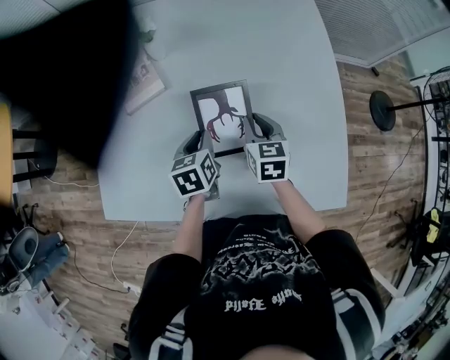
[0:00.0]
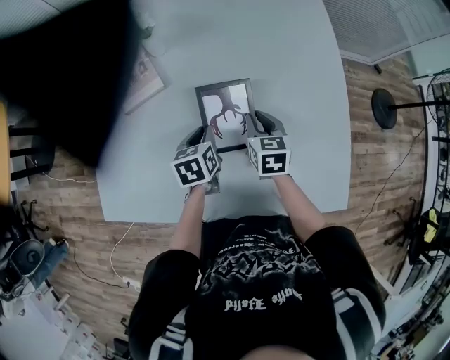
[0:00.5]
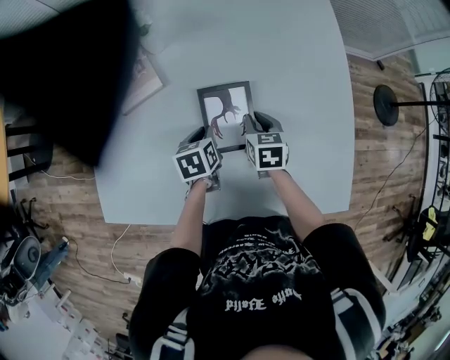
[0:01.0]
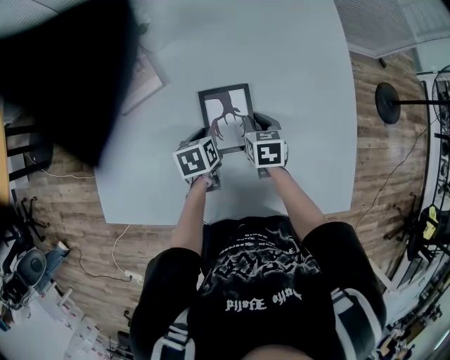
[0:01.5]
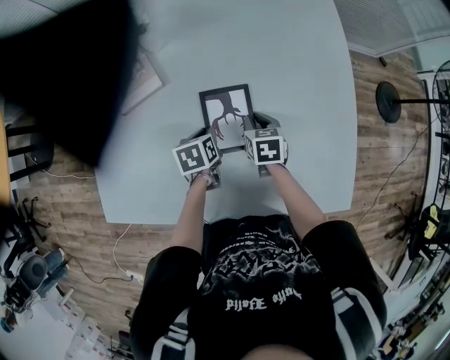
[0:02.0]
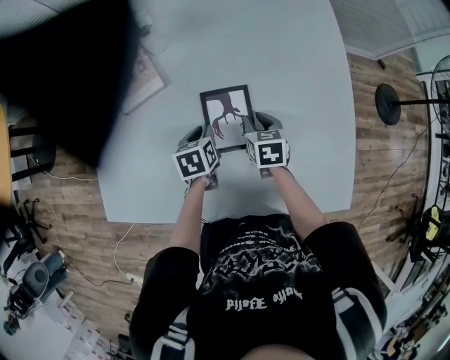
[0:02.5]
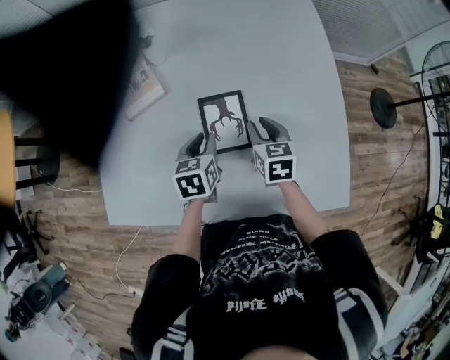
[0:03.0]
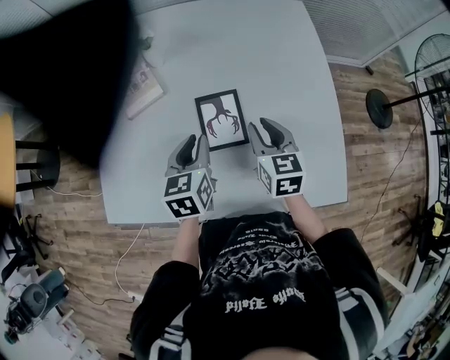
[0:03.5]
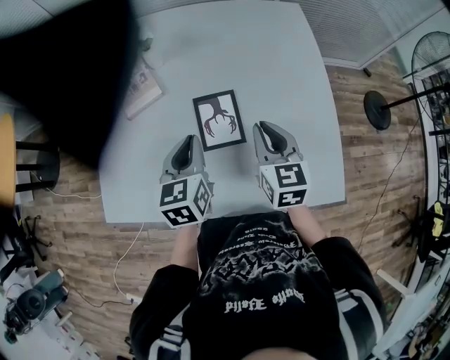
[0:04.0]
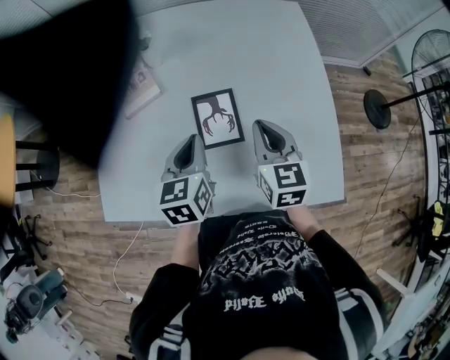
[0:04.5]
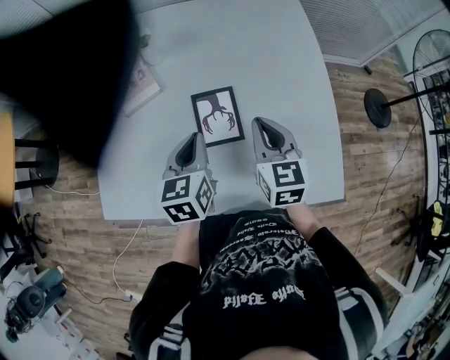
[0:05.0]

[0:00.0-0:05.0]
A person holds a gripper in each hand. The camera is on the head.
0:00.0 to 0:02.5: Both grippers move downward, roughly 10 cm.
0:02.5 to 0:05.0: The left gripper moves upward, approximately 20 cm, and rotates about 30 degrees. Meanwhile the right gripper heads upward and backward, covering some 20 cm, turns by approximately 30 degrees, and closes.

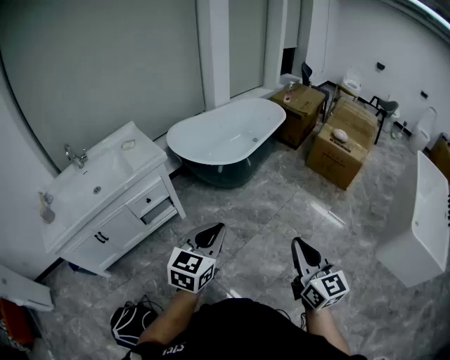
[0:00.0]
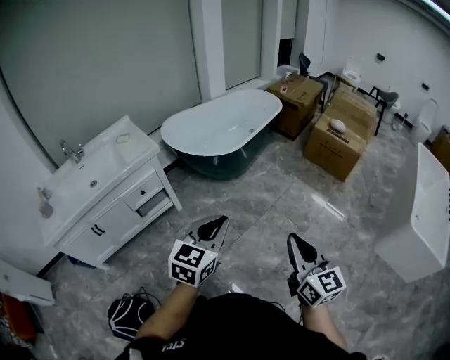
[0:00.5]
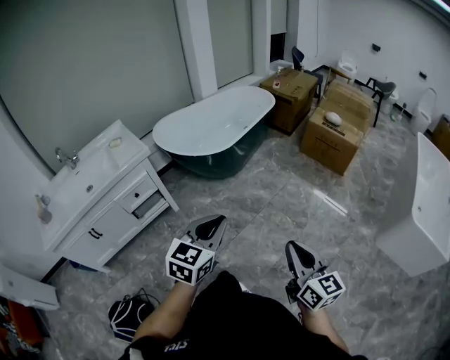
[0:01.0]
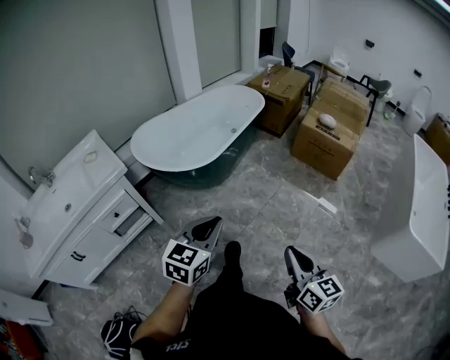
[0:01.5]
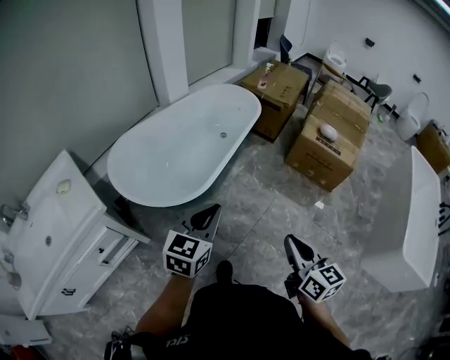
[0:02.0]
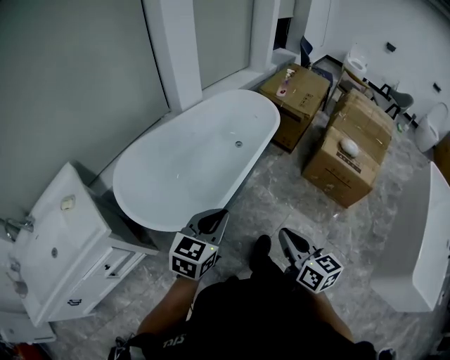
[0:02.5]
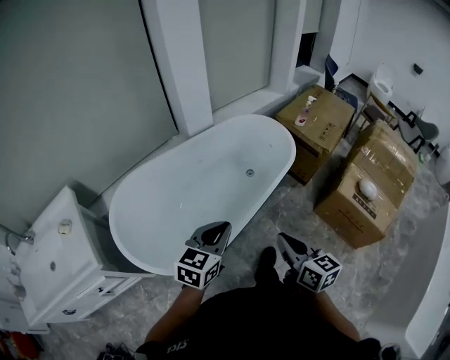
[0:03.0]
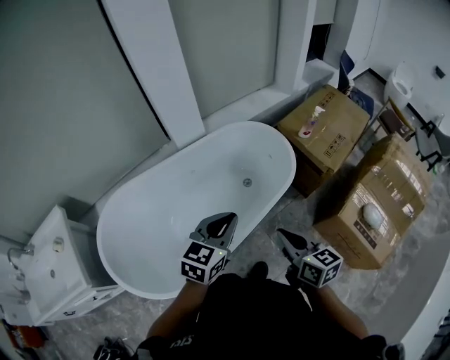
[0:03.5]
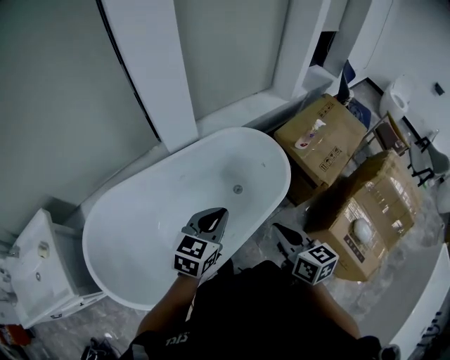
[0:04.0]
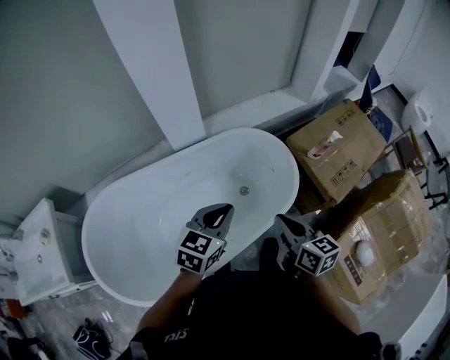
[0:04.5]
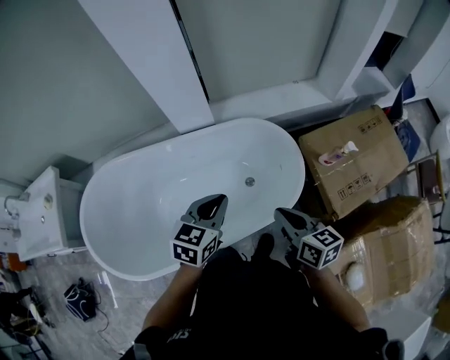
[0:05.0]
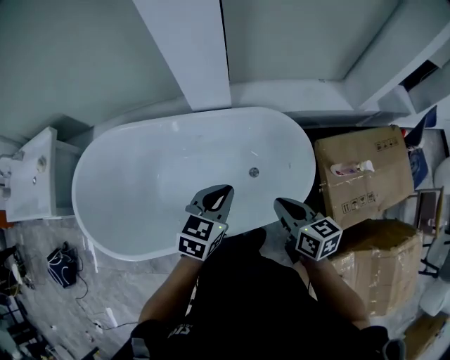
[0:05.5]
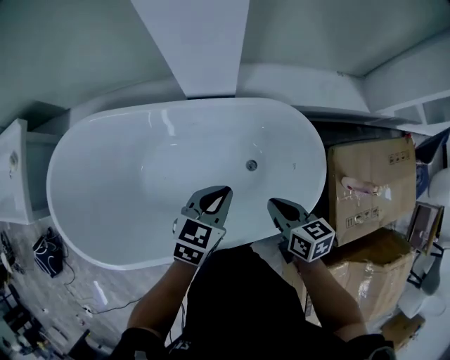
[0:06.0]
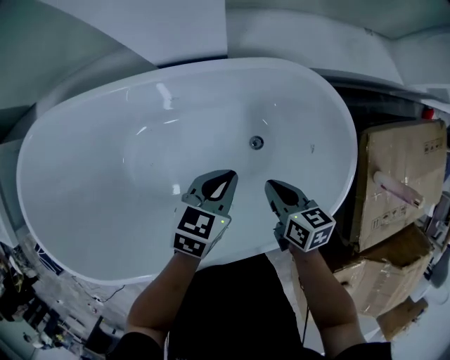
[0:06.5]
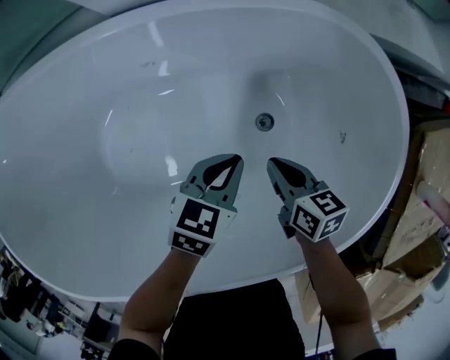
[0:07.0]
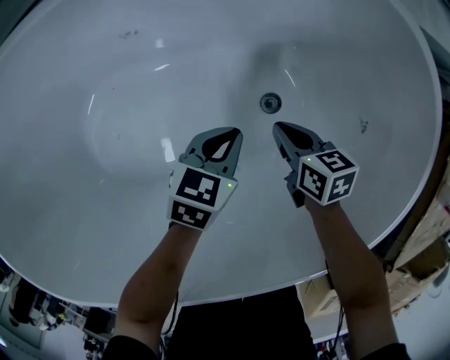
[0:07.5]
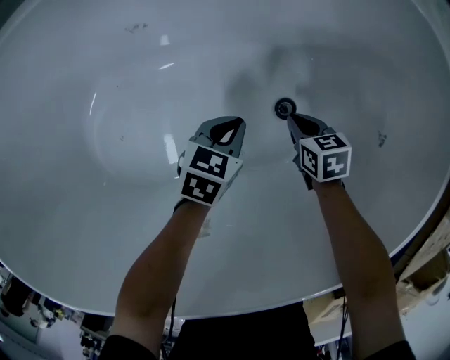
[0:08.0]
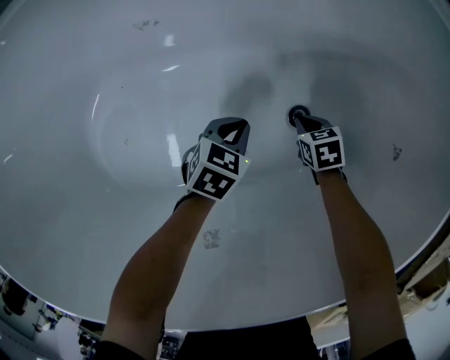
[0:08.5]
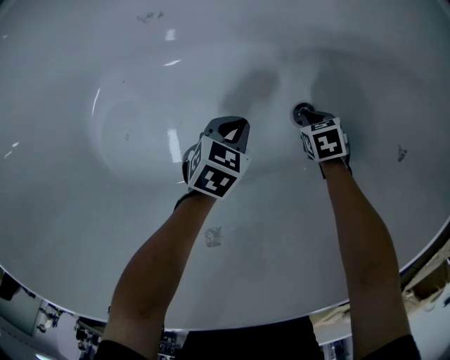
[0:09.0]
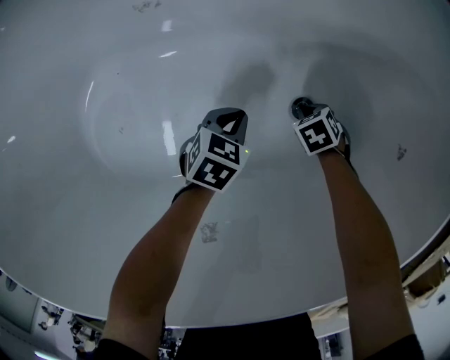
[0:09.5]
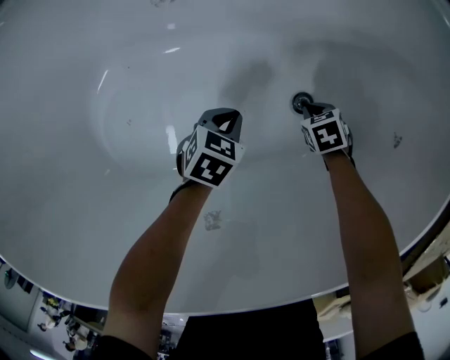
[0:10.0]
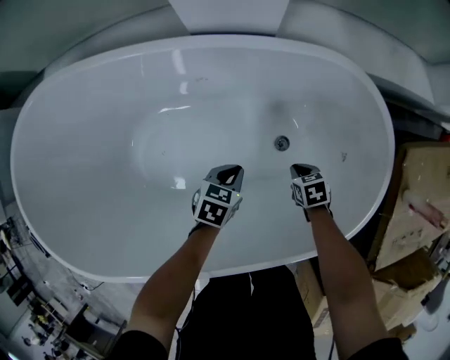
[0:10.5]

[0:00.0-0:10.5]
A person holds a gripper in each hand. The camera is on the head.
0:00.0 to 0:02.0: The two grippers travel together, forward, roughly 50 cm.
0:02.0 to 0:04.0: Both grippers are carried forward, about 70 cm. The right gripper swivels roughly 30 degrees.
0:04.0 to 0:06.5: Both grippers travel together downward, roughly 40 cm. The left gripper changes its angle by some 30 degrees. The right gripper swivels approximately 40 degrees.
0:06.5 to 0:08.5: Both grippers travel together downward, about 40 cm. The right gripper points its fingers some 30 degrees further downward.
0:08.5 to 0:10.5: The two grippers go some 25 cm upward.

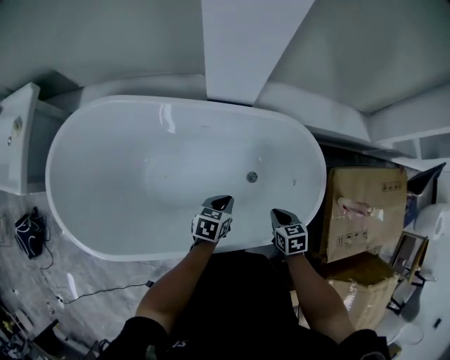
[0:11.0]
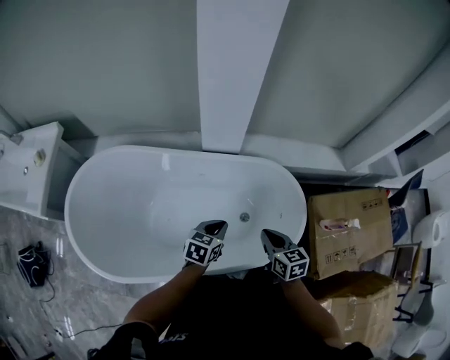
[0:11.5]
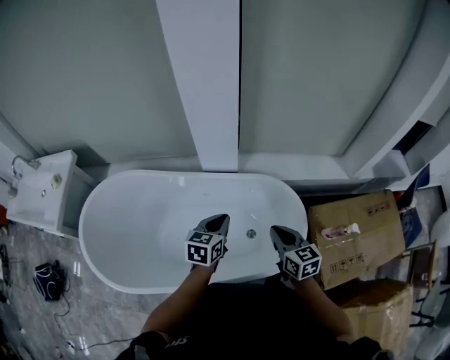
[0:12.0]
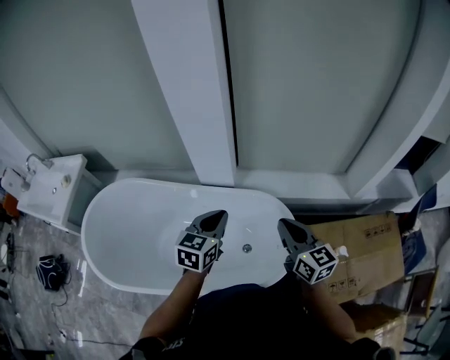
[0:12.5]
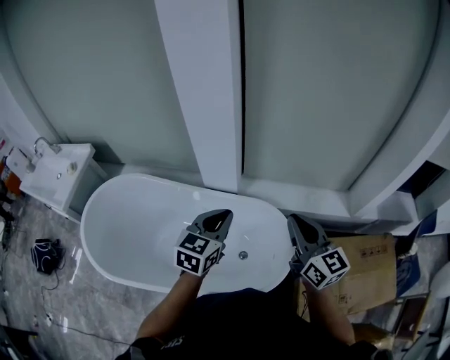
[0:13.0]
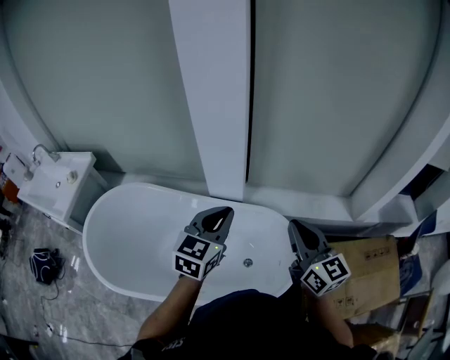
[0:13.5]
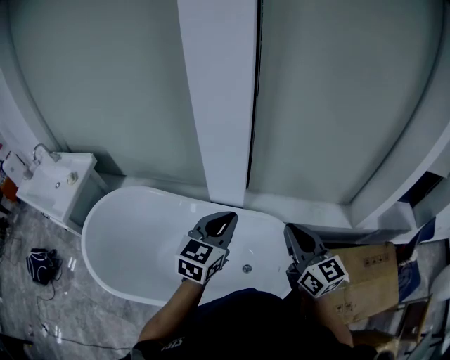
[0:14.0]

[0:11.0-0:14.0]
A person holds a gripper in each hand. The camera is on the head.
0:11.0 to 0:12.5: The grippers both shift upward by some 40 cm. The left gripper rotates roughly 30 degrees; the right gripper angles its fingers upward, by approximately 50 degrees.
0:12.5 to 0:14.0: The left gripper shifts approximately 10 cm upward; the right gripper shifts about 10 cm upward and to the left.

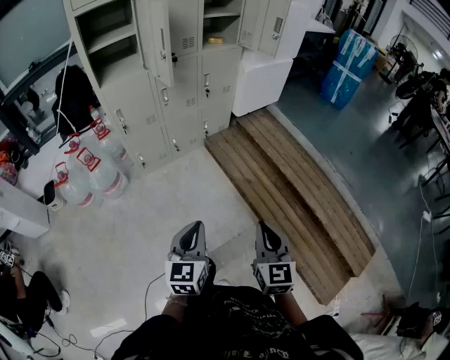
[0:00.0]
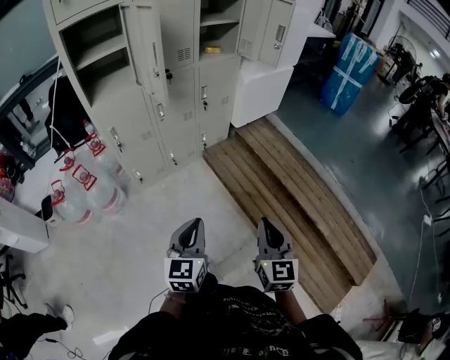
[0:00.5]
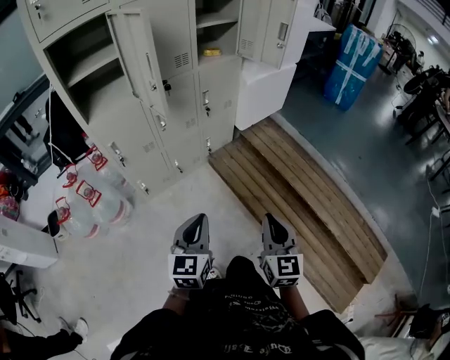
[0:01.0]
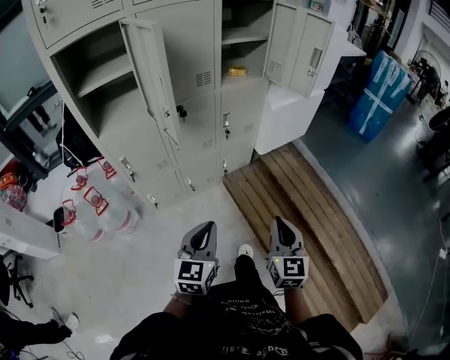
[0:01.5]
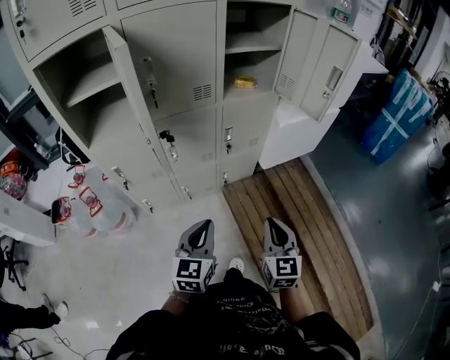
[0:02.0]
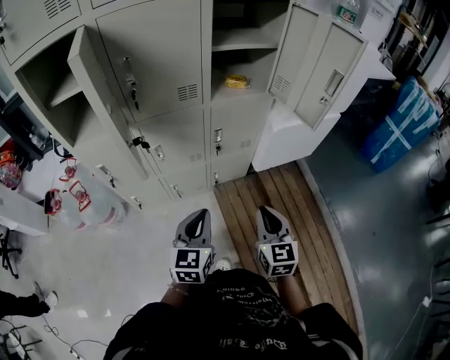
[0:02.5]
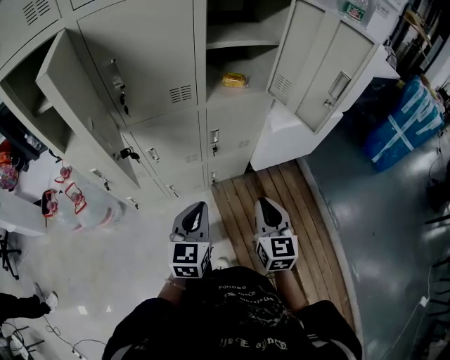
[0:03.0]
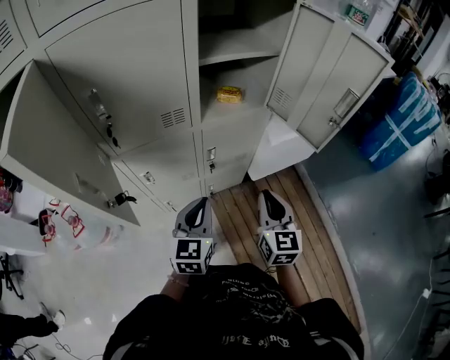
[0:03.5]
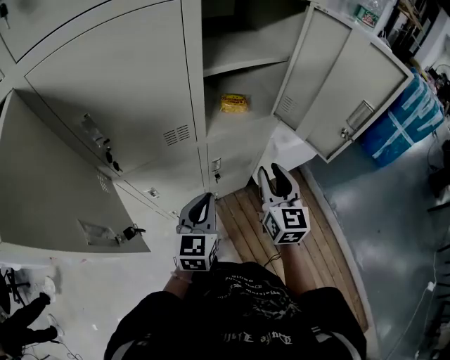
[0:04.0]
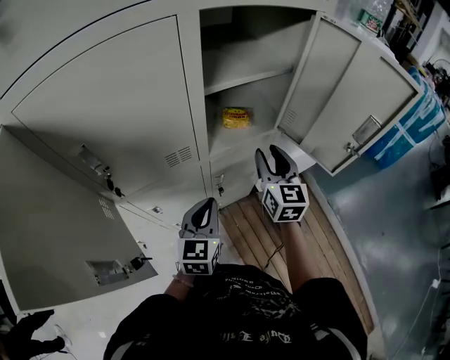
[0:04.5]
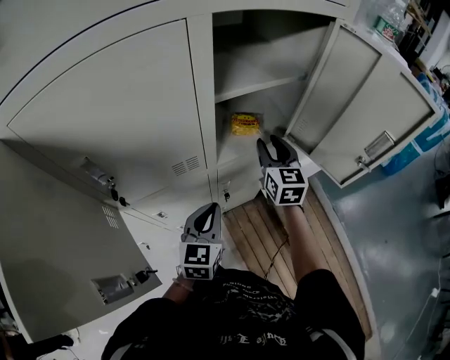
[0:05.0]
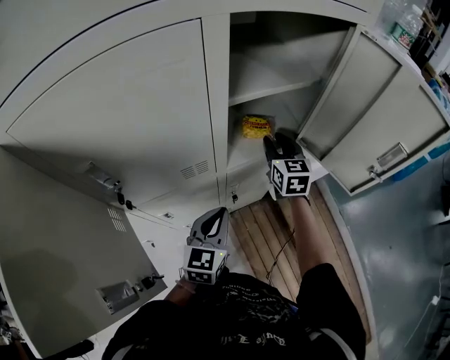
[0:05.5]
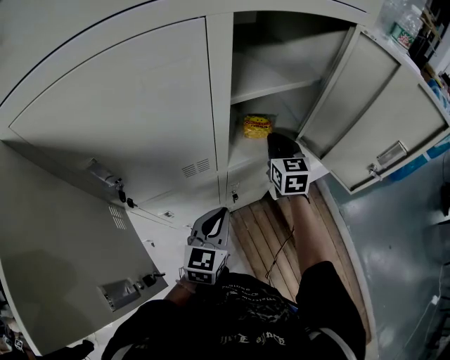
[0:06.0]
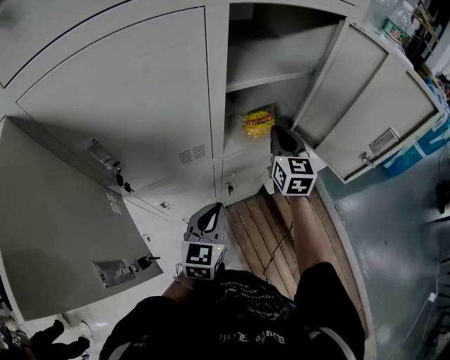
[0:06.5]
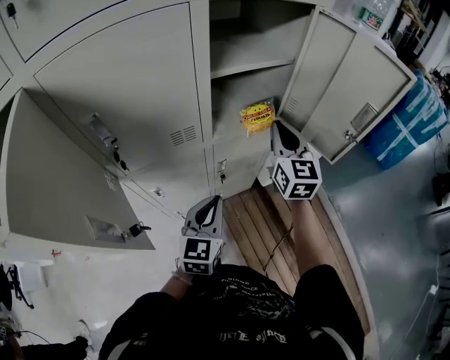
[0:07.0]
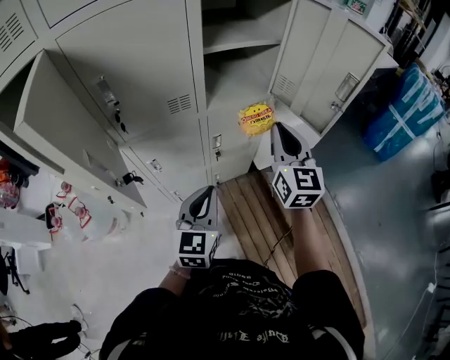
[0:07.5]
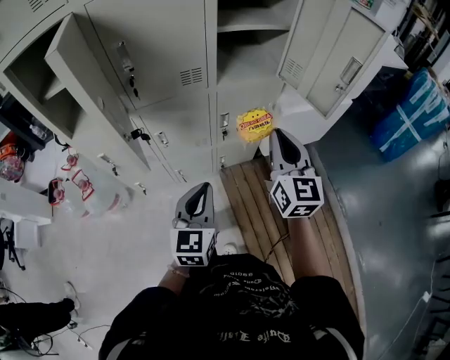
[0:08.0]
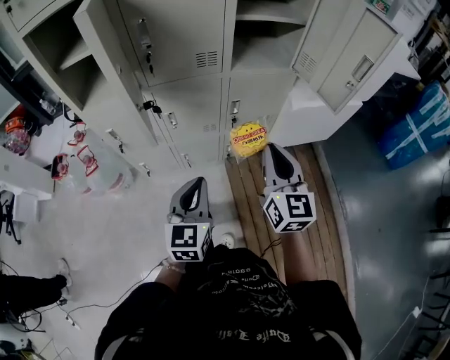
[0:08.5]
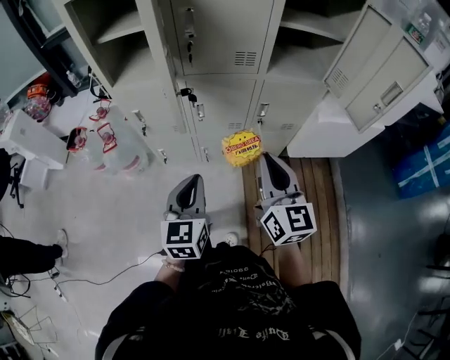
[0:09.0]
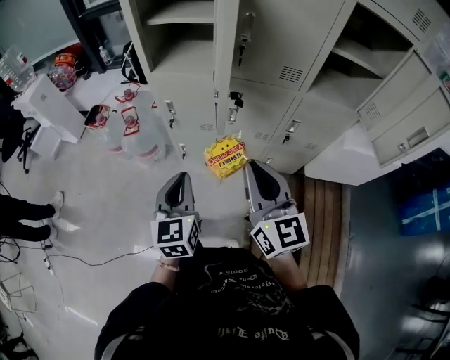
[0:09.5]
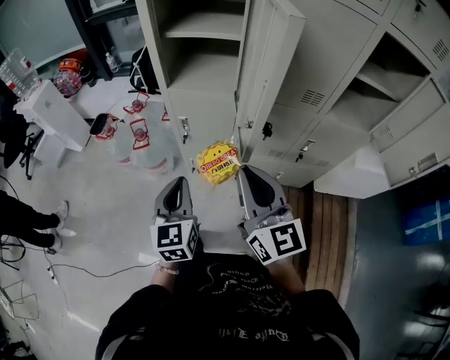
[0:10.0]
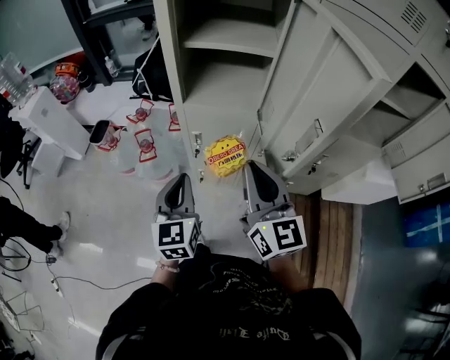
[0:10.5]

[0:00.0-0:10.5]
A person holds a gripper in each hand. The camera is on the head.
0:00.0 to 0:02.0: Both grippers are carried forward, about 40 cm.
0:02.0 to 0:04.0: Both grippers move forward, about 30 cm. The right gripper opens its fingers.
0:04.0 to 0:06.5: The right gripper shifts roughly 20 cm forward, and closes its fingers.
0:06.5 to 0:08.5: The grippers both shift backward by roughly 30 cm.
0:08.5 to 0:10.5: The left gripper shifts by about 35 cm, and rotates about 30 degrees. The right gripper moves about 40 cm, and rotates approximately 30 degrees.
